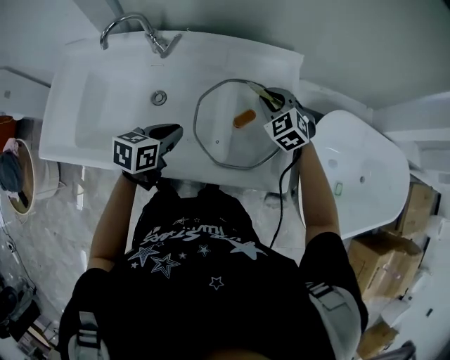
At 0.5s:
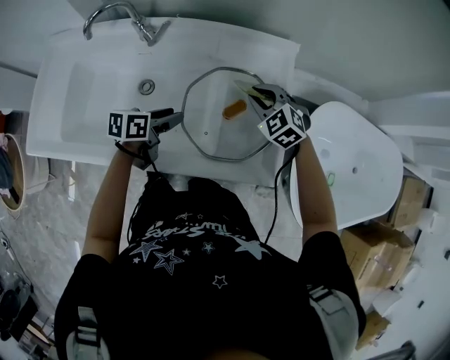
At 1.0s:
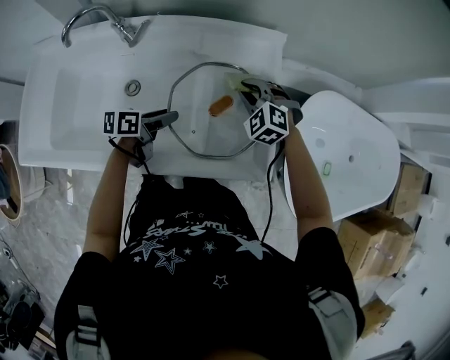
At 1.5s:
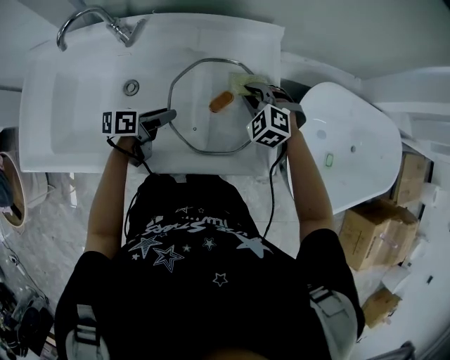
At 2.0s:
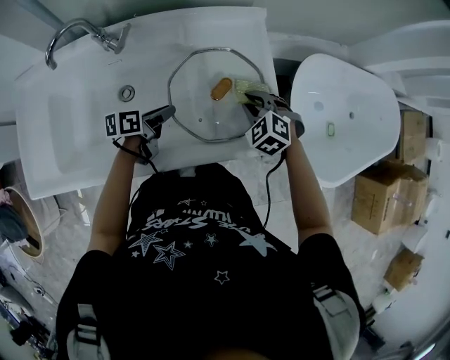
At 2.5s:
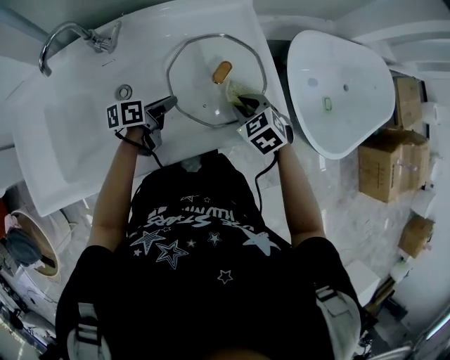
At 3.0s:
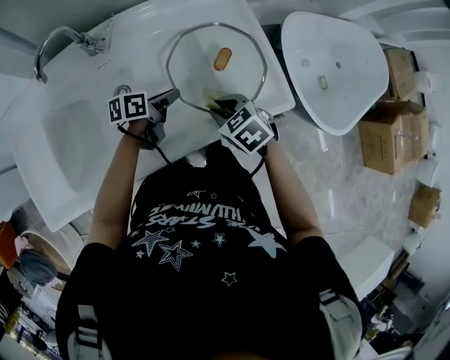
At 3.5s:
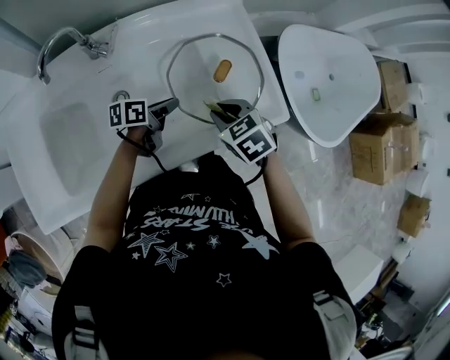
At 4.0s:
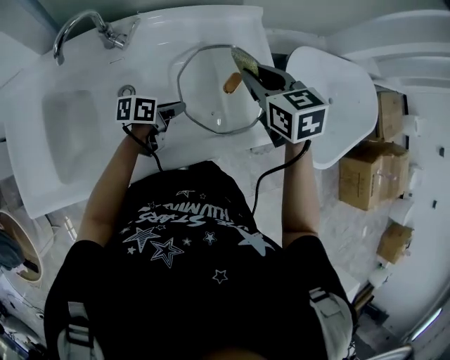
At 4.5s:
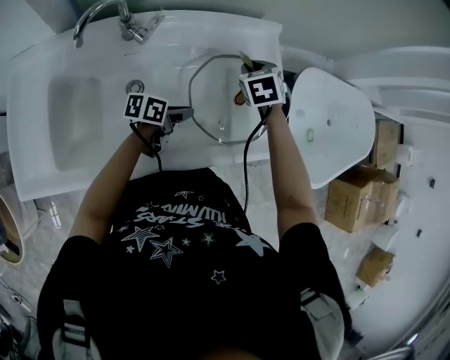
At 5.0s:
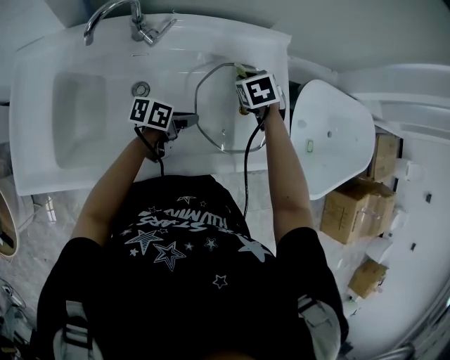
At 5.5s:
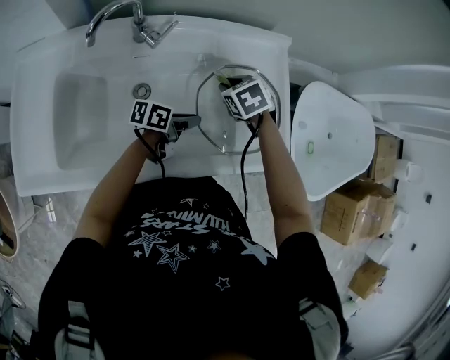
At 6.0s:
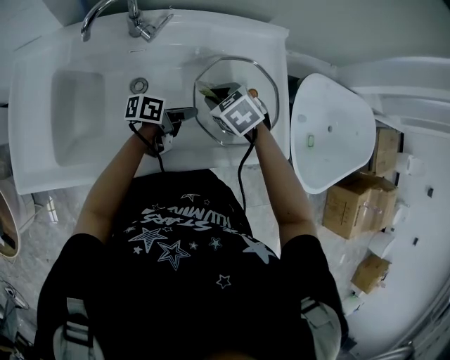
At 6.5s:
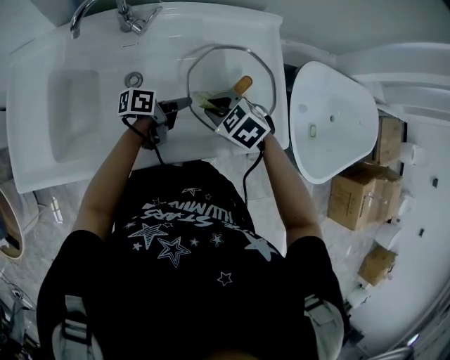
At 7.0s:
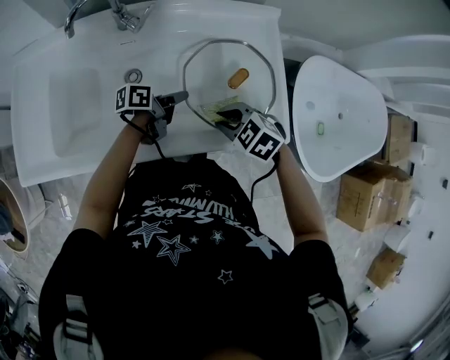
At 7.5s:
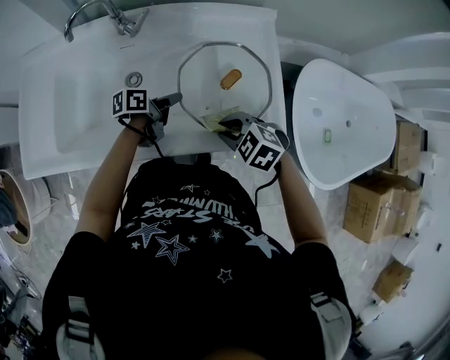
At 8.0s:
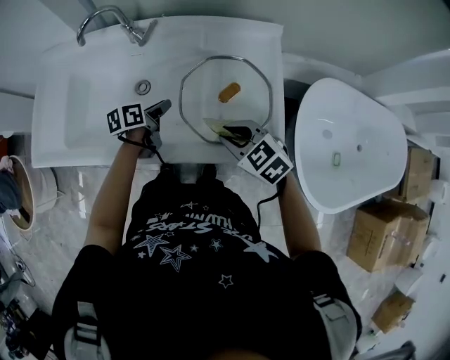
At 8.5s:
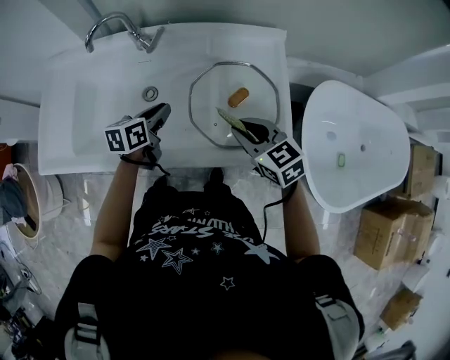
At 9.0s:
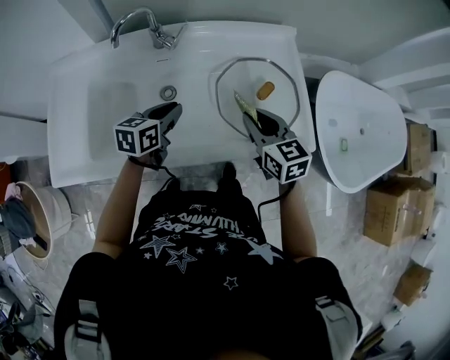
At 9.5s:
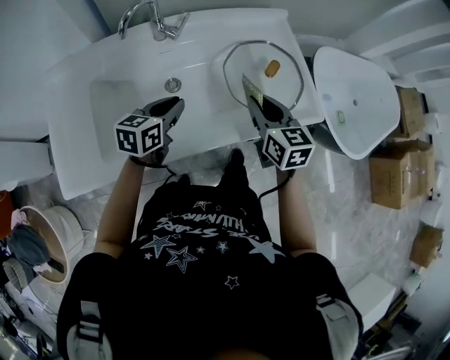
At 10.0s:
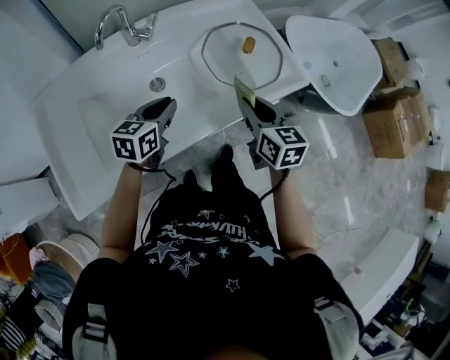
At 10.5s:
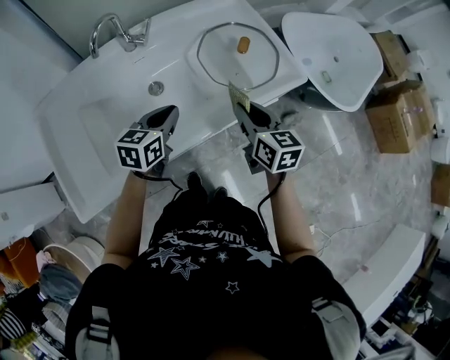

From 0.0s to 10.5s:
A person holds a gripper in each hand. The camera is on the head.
From 0.0s to 2.0s: The left gripper moves downward, approximately 10 cm, turns by some 30 degrees, and opens and closes again, while the right gripper goes roughly 10 cm backward.
From 2.0s to 4.0s: The right gripper is displaced upward and to the left by some 20 cm, and rotates around the line of its fingers by some 50 degrees, clockwise from behind.
From 4.0s to 6.5s: The right gripper moves downward, approximately 15 cm, and rotates some 40 degrees.
From 6.5s to 8.5s: The left gripper is displaced upward by about 5 cm, and swivels roughly 50 degrees. Meanwhile the right gripper changes place by some 15 cm, and angles its fingers upward, by roughly 30 degrees.
From 8.5s to 10.5s: The right gripper shifts by about 15 cm, and rotates roughly 60 degrees. Meanwhile the left gripper ends up roughly 15 cm from where it was, and swivels about 40 degrees.

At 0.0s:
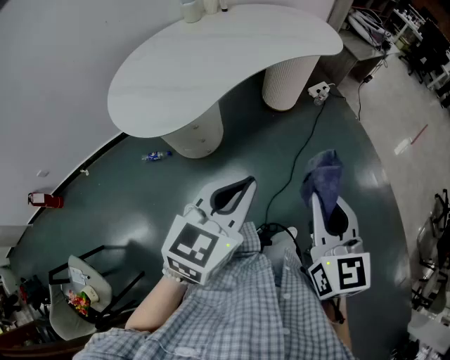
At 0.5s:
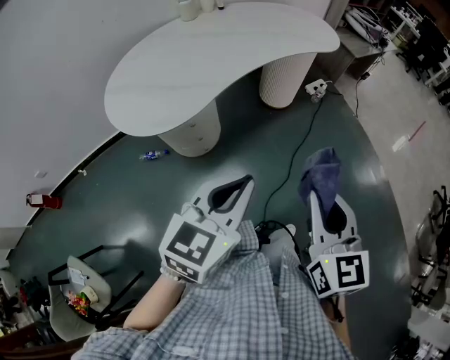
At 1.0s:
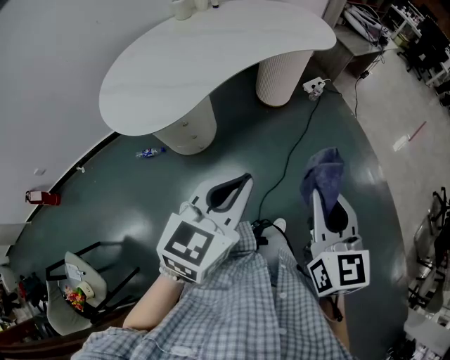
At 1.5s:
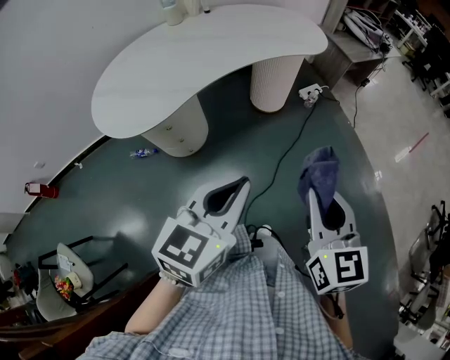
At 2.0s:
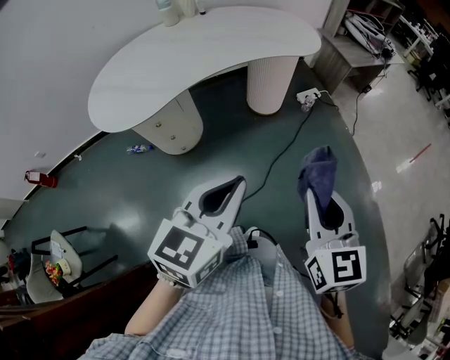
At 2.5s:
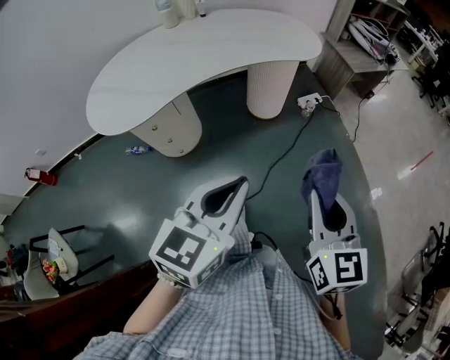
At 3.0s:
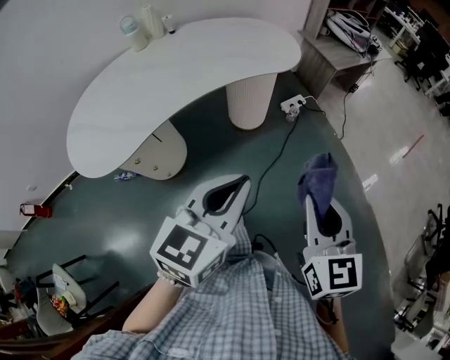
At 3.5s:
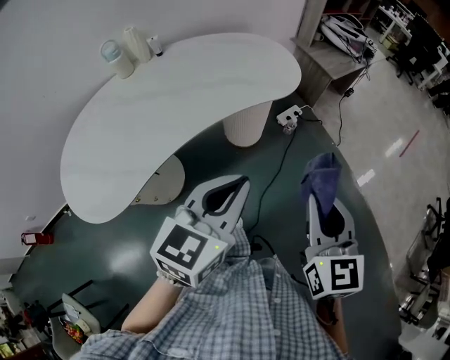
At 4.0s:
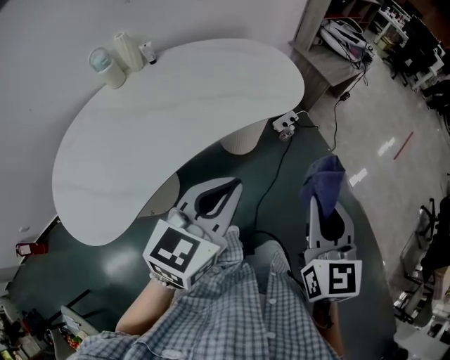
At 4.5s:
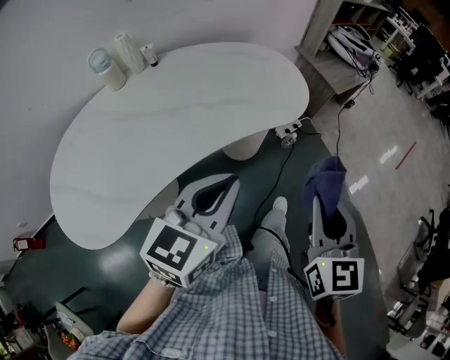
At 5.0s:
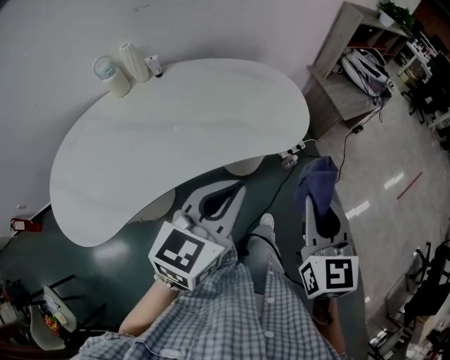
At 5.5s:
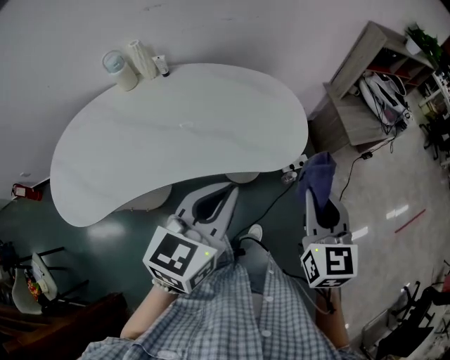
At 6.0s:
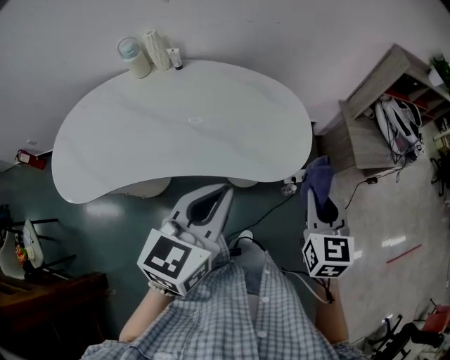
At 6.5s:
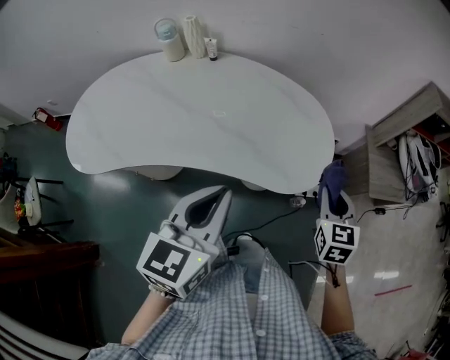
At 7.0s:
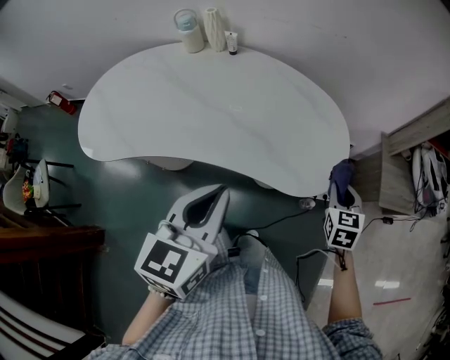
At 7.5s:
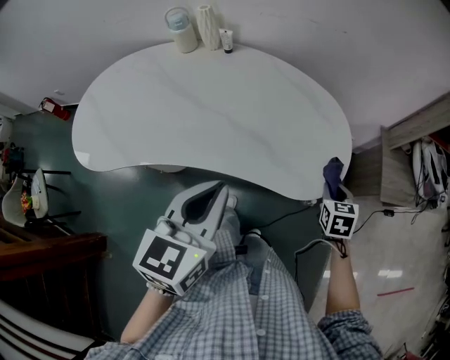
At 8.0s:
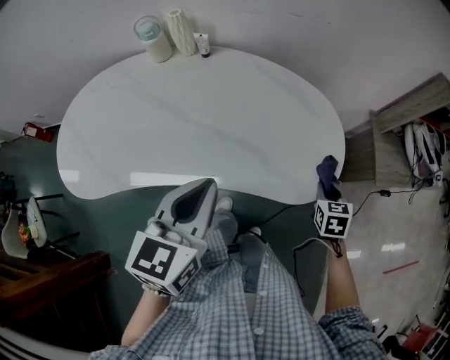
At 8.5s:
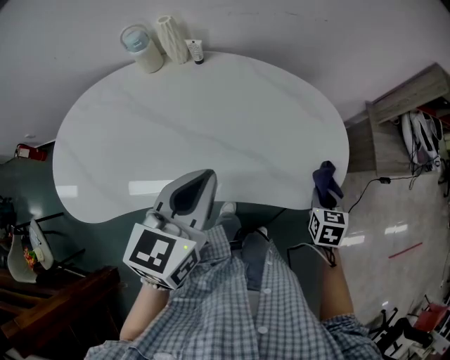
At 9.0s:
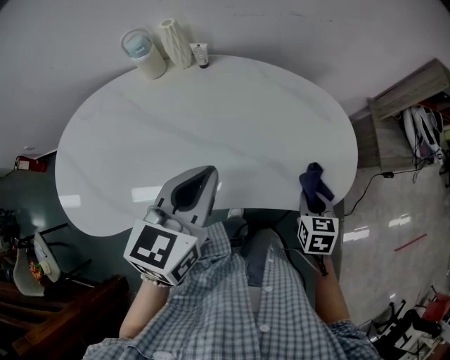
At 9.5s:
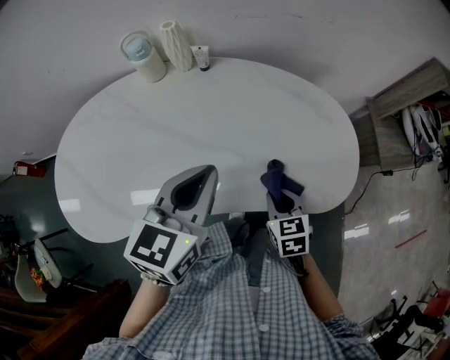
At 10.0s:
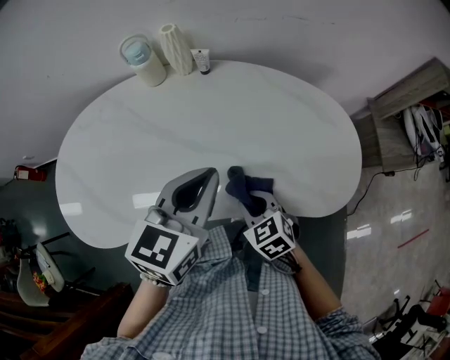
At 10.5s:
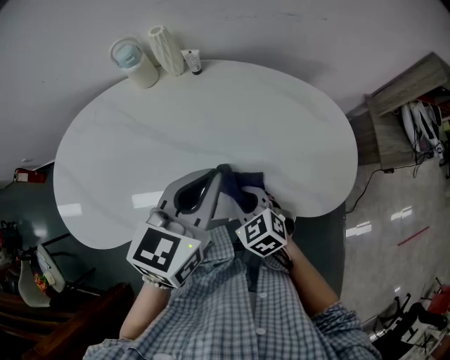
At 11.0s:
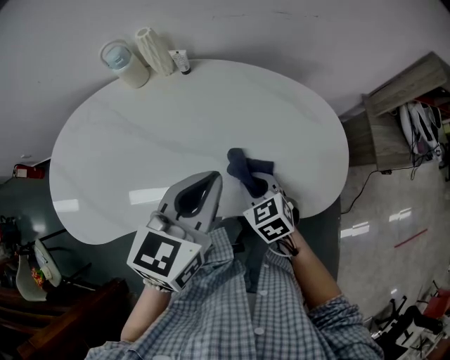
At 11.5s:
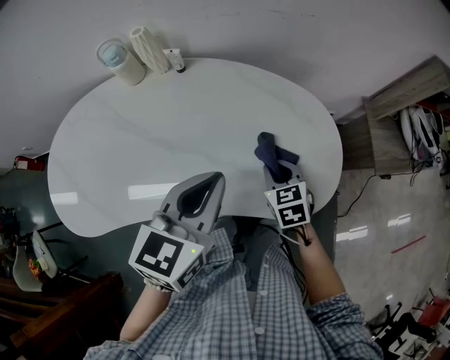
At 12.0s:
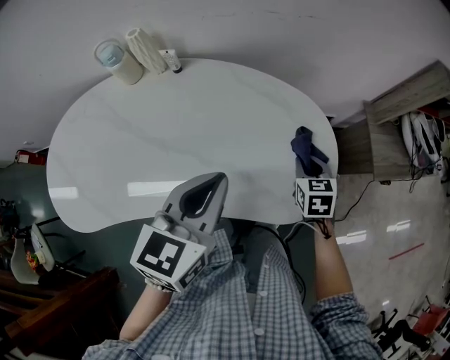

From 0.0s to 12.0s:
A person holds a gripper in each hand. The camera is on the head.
From 0.0s to 2.0s: The grippers both shift to the right by about 20 cm.
From 2.0s to 4.0s: Both grippers travel together forward, about 35 cm.
From 4.0s to 6.0s: The right gripper changes place by about 35 cm, and rotates roughly 30 degrees. The left gripper changes place by roughly 20 cm, and turns by about 30 degrees.
From 6.0s to 8.0s: The right gripper is displaced downward and forward by about 20 cm, and turns by approximately 30 degrees; the left gripper heads to the left and forward, covering approximately 15 cm.
From 8.0s to 10.0s: The left gripper heads to the left and forward, covering roughly 15 cm, while the right gripper shifts about 35 cm to the left, and swivels approximately 30 degrees.
From 10.0s to 12.0s: The left gripper goes roughly 15 cm to the right. Meanwhile the right gripper heads to the right and forward, covering about 30 cm, and rotates roughly 30 degrees.

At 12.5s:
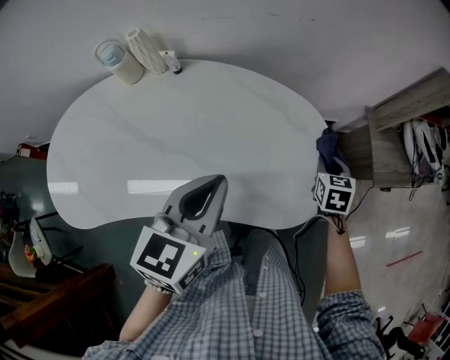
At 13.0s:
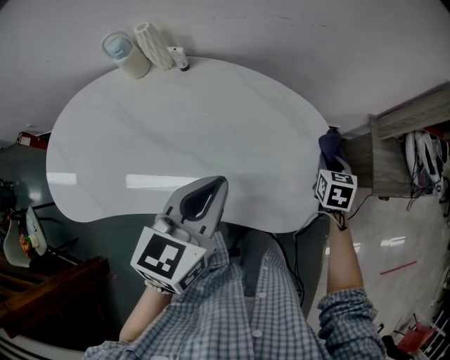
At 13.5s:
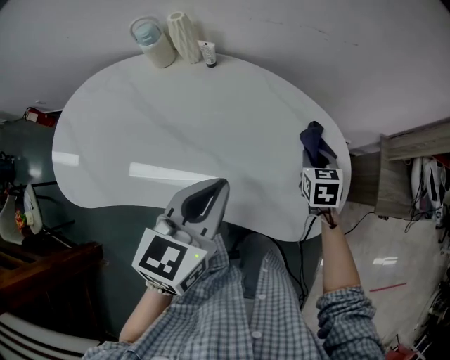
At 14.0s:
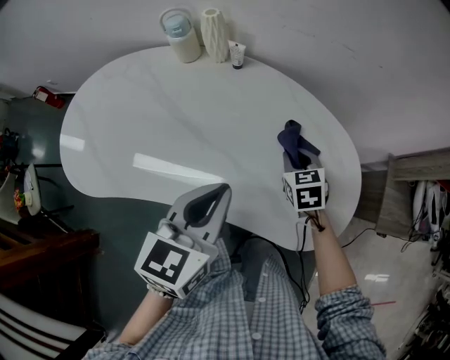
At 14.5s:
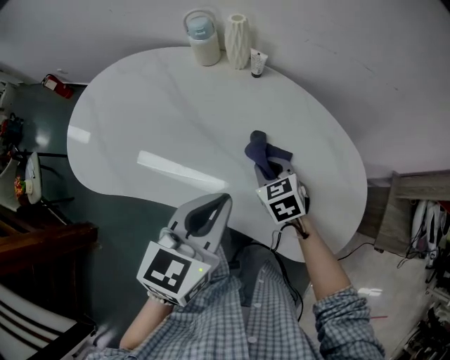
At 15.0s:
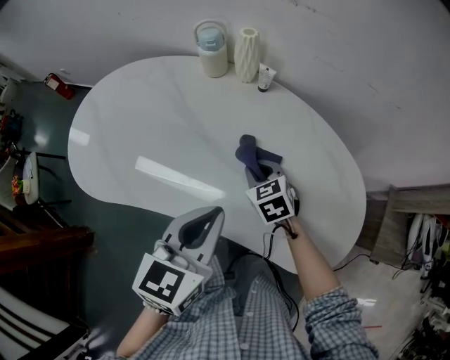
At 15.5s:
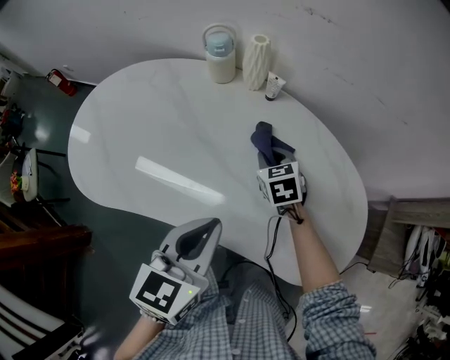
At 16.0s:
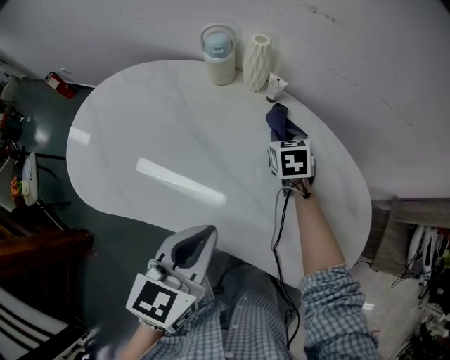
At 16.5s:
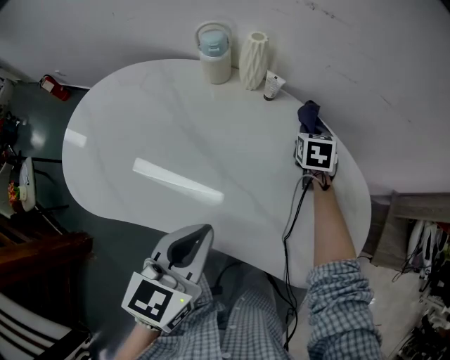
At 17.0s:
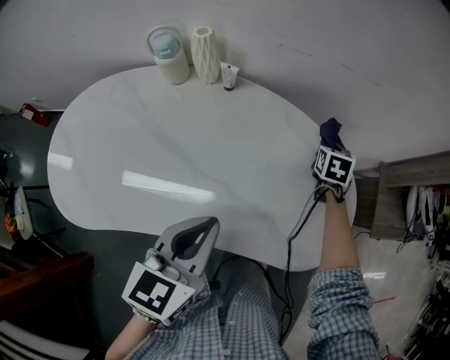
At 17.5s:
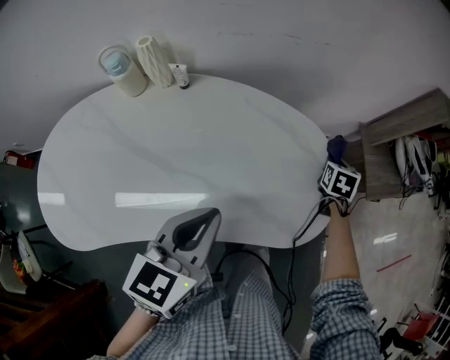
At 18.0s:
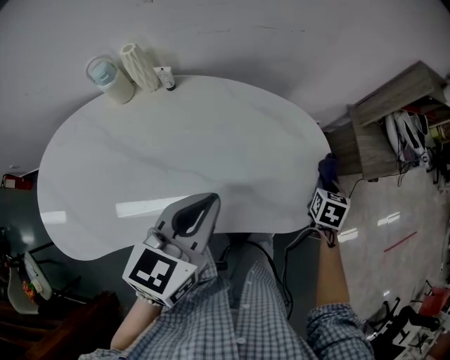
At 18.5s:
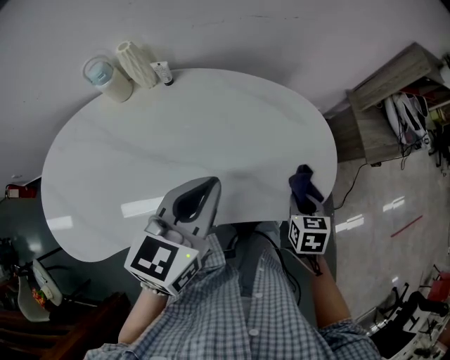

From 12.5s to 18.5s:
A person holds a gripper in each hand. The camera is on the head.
From 12.5s to 14.5s: The right gripper ends up approximately 35 cm from where it was, and rotates approximately 50 degrees; the left gripper ends up approximately 10 cm from where it was.
From 14.5s to 16.5s: The left gripper moves to the left, approximately 5 cm. Meanwhile the right gripper goes roughly 25 cm forward and to the right, and changes its angle by approximately 30 degrees.
From 16.5s to 18.5s: The right gripper changes place by roughly 40 cm, and rotates roughly 30 degrees; the left gripper ends up about 10 cm from where it was, and changes its angle by some 30 degrees.
